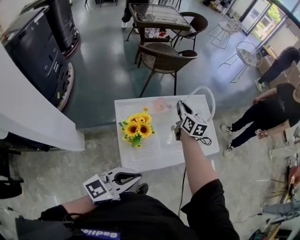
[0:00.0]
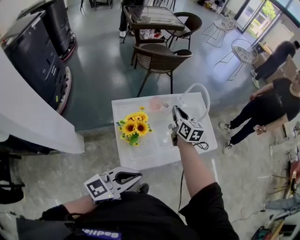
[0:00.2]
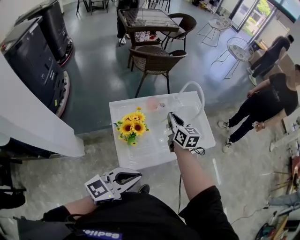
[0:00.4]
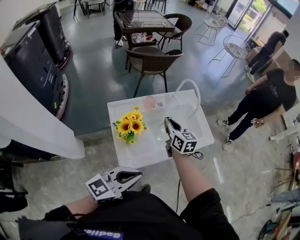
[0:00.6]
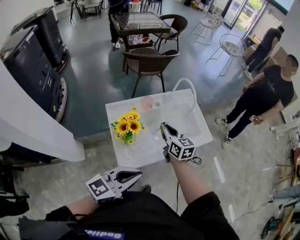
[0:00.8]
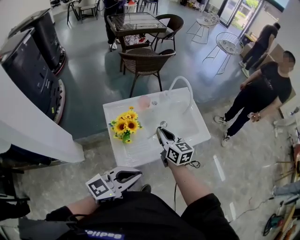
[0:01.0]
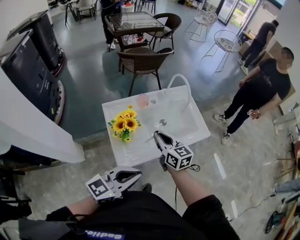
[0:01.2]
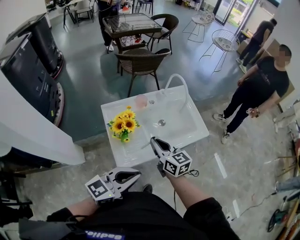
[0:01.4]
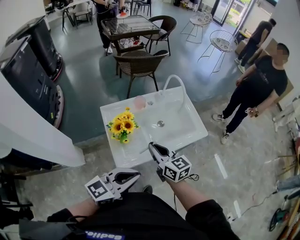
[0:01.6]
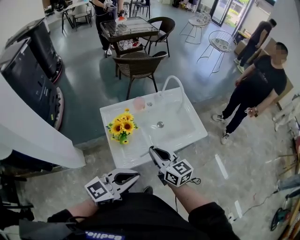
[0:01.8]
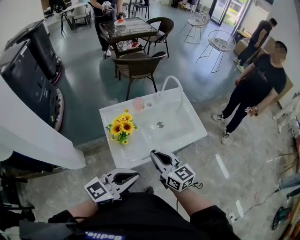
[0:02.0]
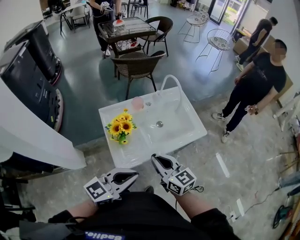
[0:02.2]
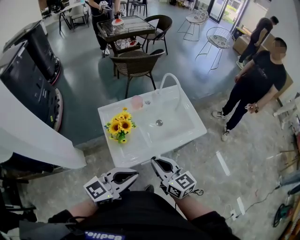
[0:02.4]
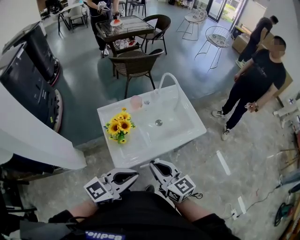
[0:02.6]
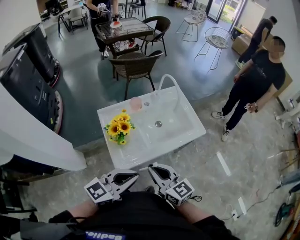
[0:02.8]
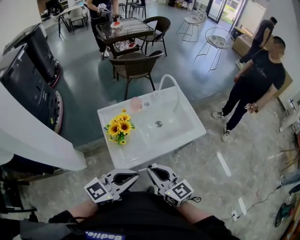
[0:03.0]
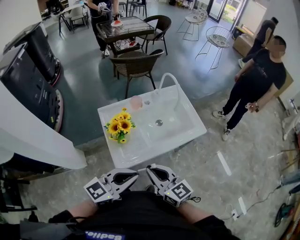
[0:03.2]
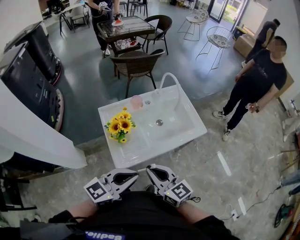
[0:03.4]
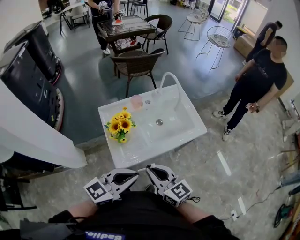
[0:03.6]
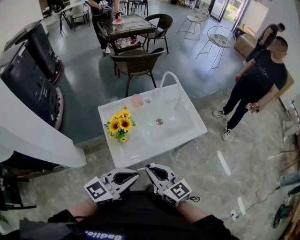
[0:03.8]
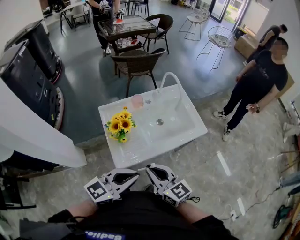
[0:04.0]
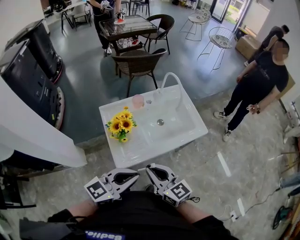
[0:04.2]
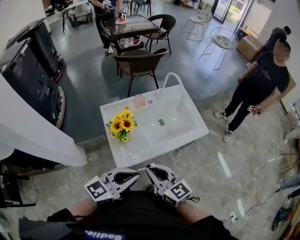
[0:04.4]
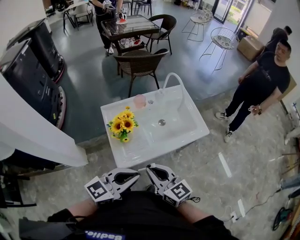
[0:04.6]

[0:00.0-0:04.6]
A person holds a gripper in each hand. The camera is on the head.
0:00.0 to 0:01.6: The right gripper heads backward, covering some 30 cm. Meanwhile the left gripper heads to the right, covering some 10 cm.
0:01.6 to 0:03.0: The right gripper is displaced backward by approximately 10 cm.
0:03.0 to 0:04.6: Neither gripper changes place.

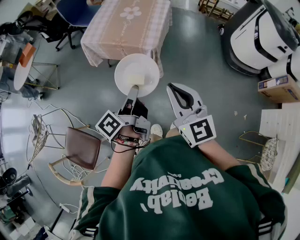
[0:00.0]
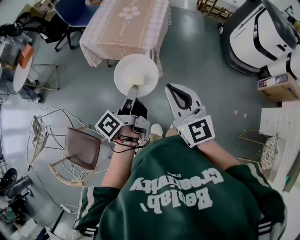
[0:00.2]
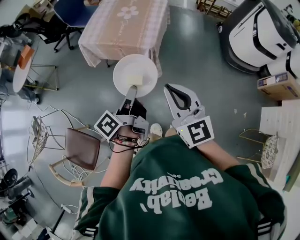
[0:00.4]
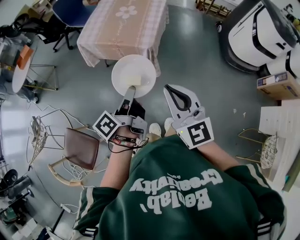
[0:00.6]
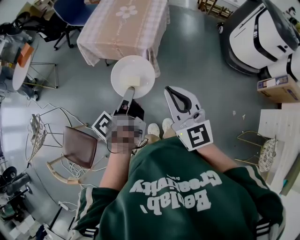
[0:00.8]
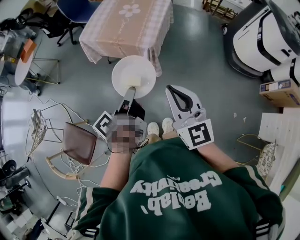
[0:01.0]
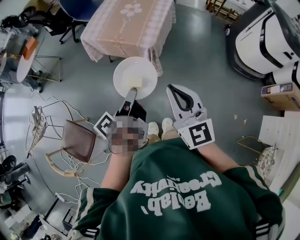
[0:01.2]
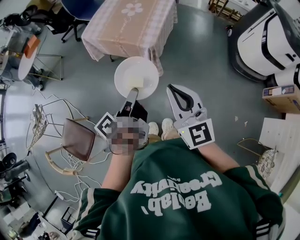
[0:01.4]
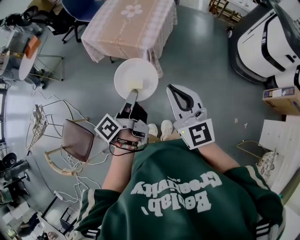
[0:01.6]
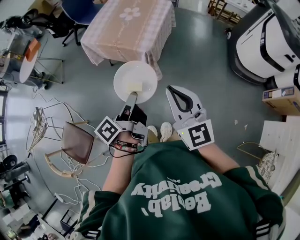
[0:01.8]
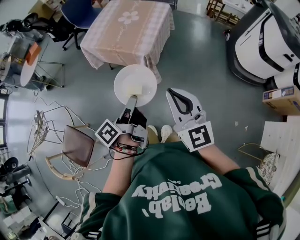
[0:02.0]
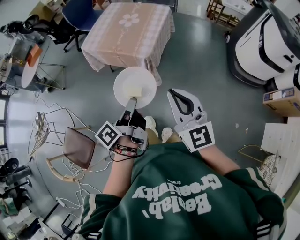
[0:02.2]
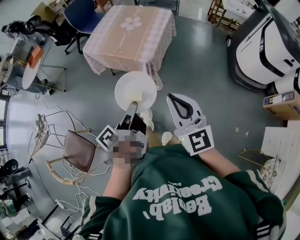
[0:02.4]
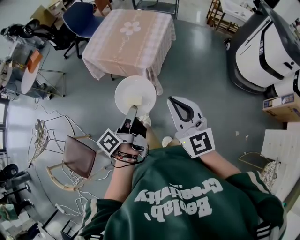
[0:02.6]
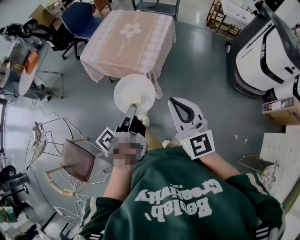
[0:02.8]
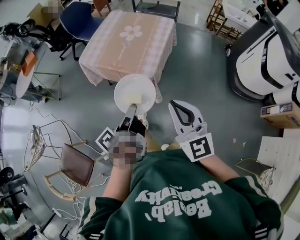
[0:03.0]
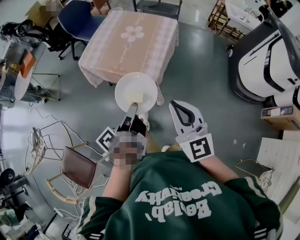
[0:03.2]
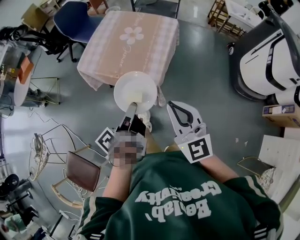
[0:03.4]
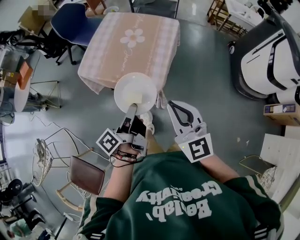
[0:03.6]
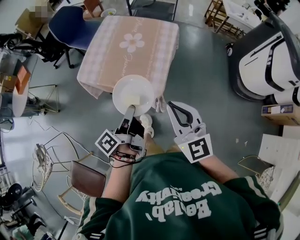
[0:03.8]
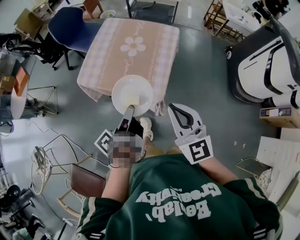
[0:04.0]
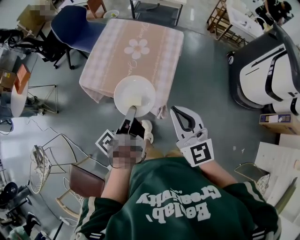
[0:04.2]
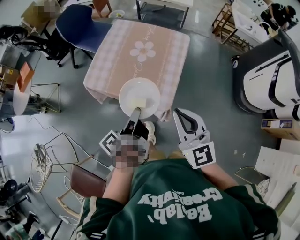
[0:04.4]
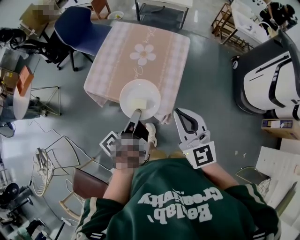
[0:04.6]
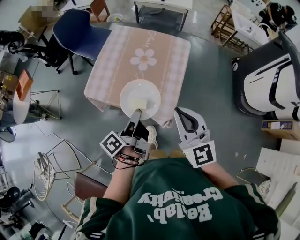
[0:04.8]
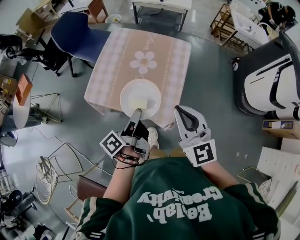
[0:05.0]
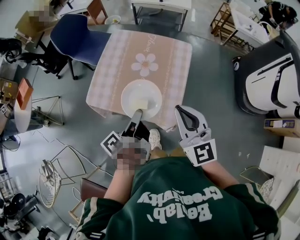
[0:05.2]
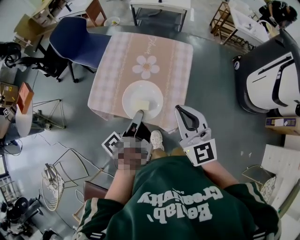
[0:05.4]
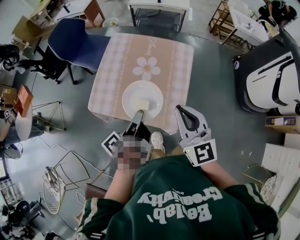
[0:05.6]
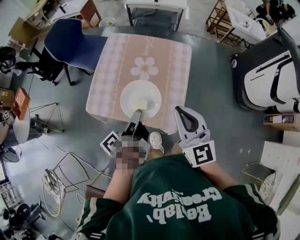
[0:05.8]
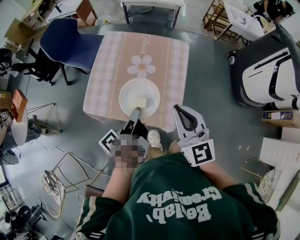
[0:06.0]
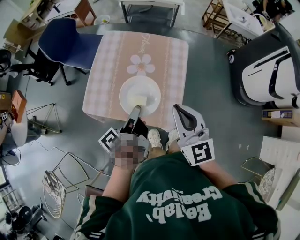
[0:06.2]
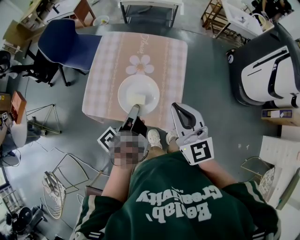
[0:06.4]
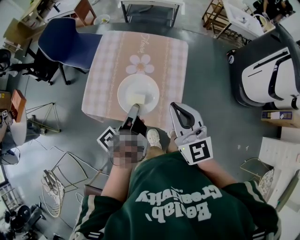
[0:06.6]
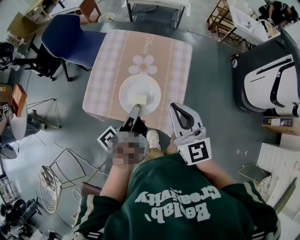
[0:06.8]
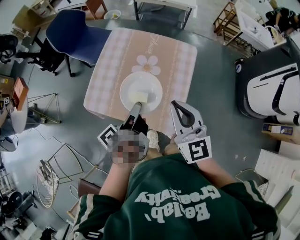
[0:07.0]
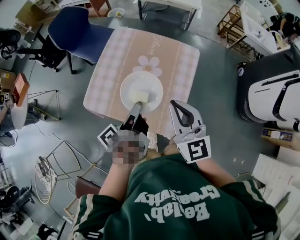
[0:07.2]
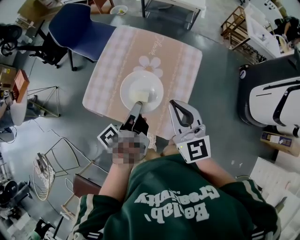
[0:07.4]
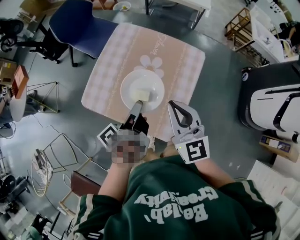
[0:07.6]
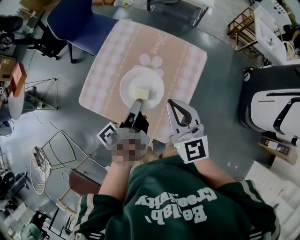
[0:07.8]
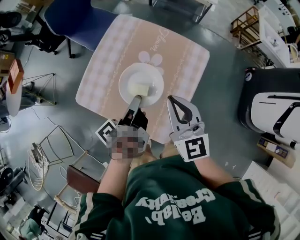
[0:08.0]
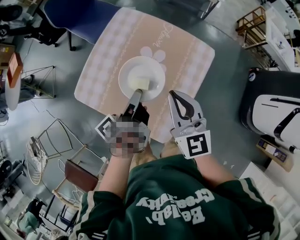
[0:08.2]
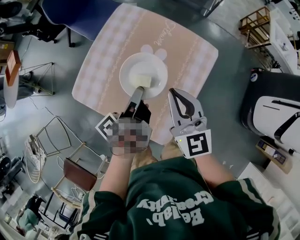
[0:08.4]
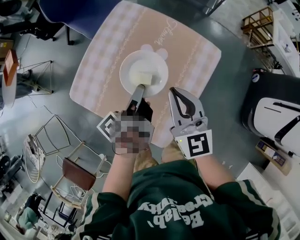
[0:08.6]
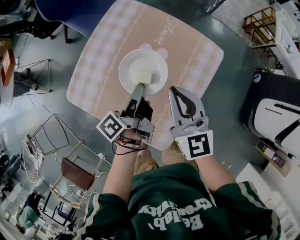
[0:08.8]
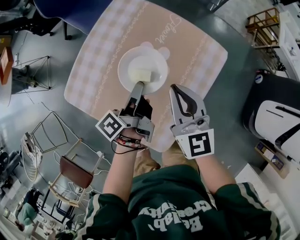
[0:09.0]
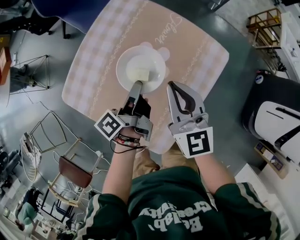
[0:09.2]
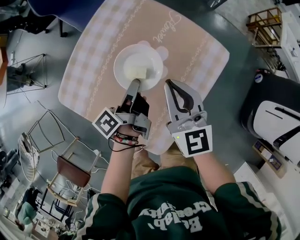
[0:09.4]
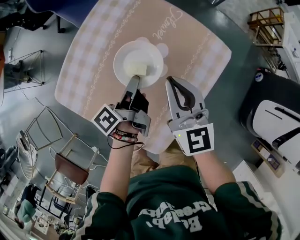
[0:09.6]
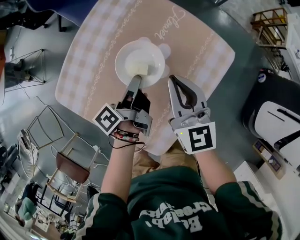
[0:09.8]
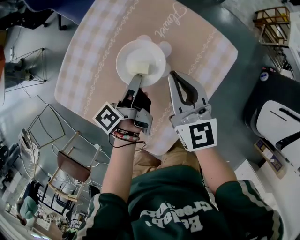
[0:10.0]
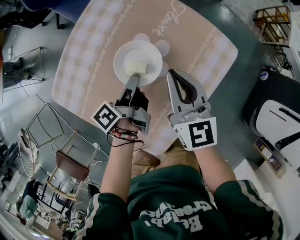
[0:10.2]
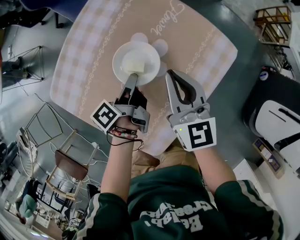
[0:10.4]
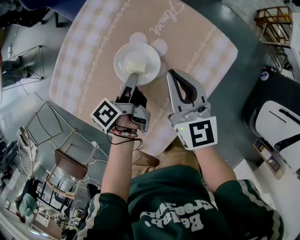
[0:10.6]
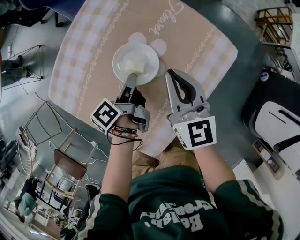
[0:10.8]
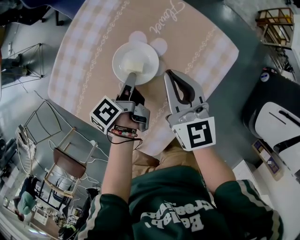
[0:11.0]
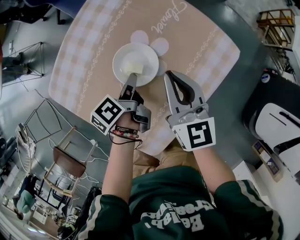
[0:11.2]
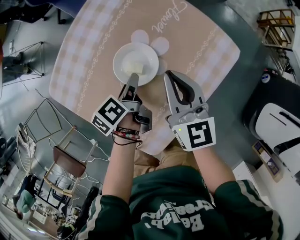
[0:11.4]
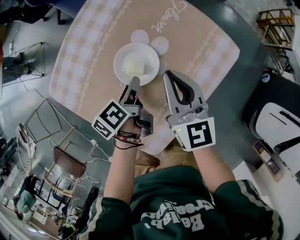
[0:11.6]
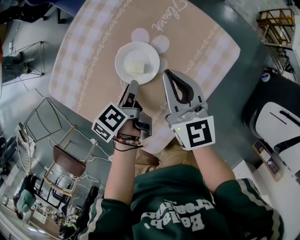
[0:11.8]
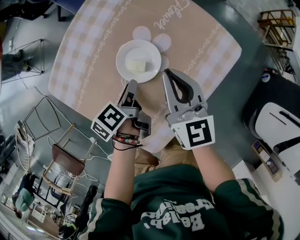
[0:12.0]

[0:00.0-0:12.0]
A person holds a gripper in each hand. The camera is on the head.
0:00.0 to 0:01.6: The right gripper shifts by approximately 10 cm.
0:01.6 to 0:03.0: The right gripper ends up approximately 10 cm from where it was.
0:03.0 to 0:04.4: The right gripper moves about 20 cm.
0:04.4 to 0:06.0: The right gripper shifts by about 15 cm.
0:06.0 to 0:07.6: The right gripper shifts by approximately 10 cm.
0:07.6 to 0:09.0: The right gripper moves approximately 15 cm.
0:09.0 to 0:10.4: The right gripper shifts approximately 5 cm downward.

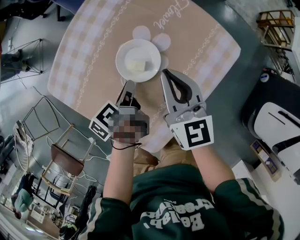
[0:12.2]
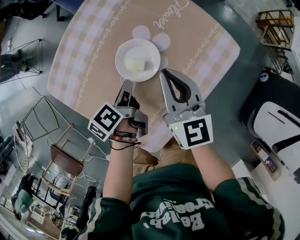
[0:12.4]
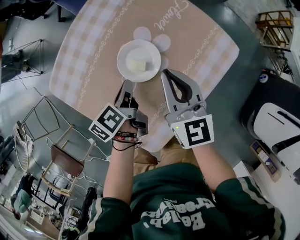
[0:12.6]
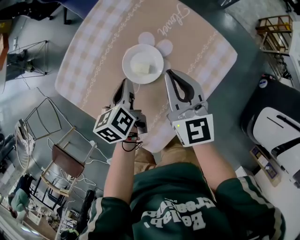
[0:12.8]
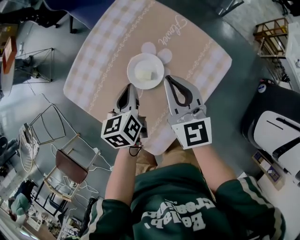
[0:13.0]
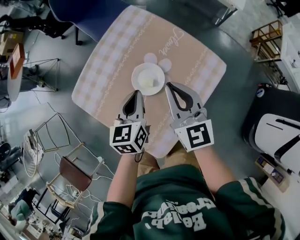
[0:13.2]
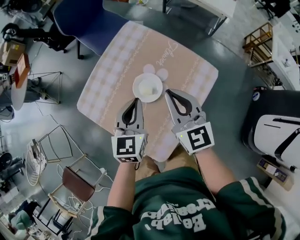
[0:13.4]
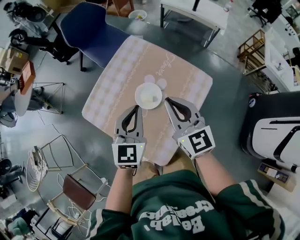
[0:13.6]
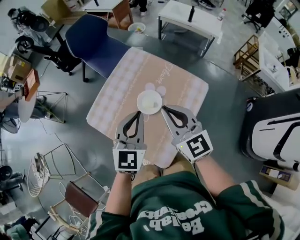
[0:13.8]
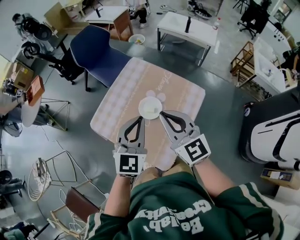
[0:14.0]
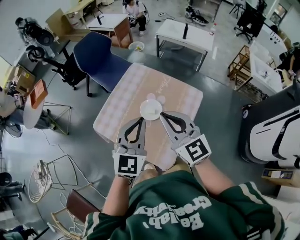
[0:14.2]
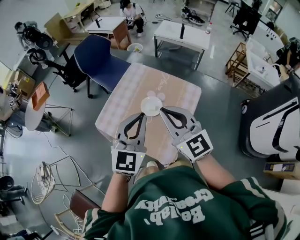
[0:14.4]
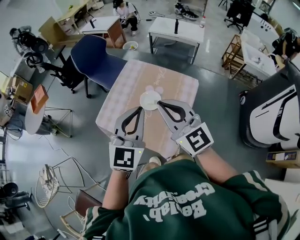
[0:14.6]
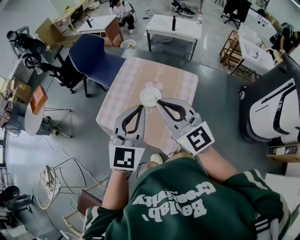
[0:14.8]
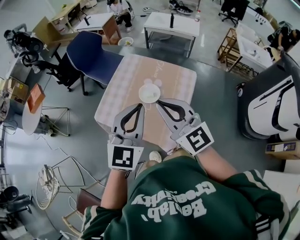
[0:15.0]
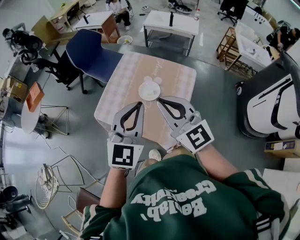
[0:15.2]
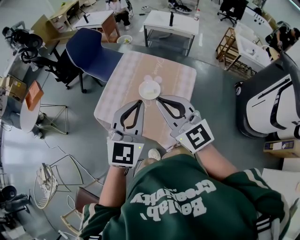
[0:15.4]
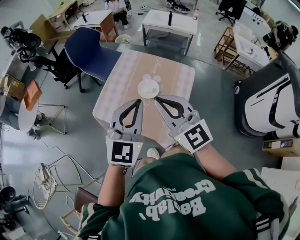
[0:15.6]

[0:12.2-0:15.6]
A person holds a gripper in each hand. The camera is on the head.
0:12.2 to 0:13.8: The right gripper goes about 20 cm upward.
0:13.8 to 0:15.6: The right gripper moves about 20 cm.

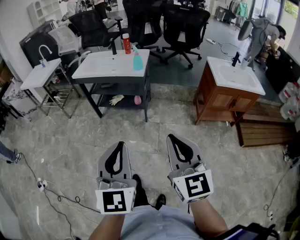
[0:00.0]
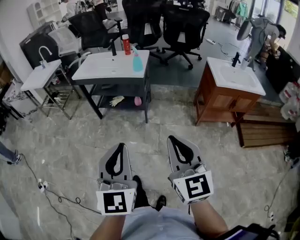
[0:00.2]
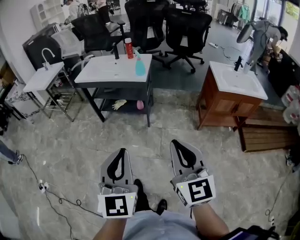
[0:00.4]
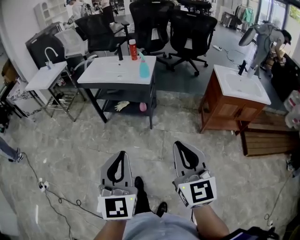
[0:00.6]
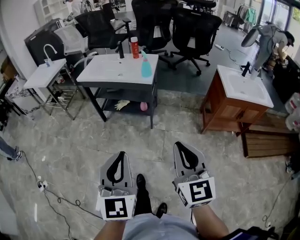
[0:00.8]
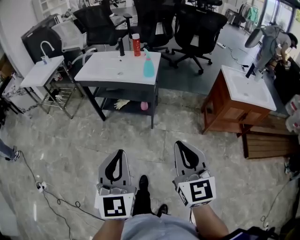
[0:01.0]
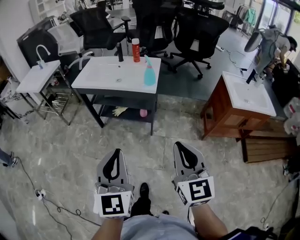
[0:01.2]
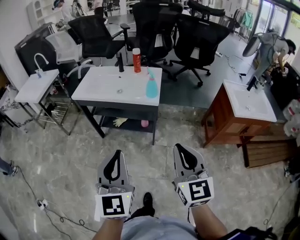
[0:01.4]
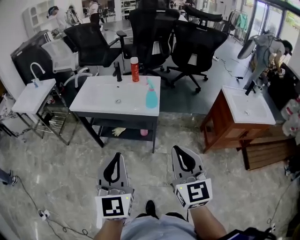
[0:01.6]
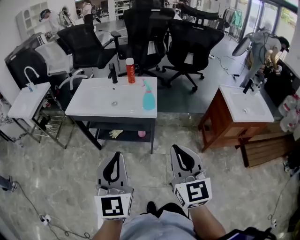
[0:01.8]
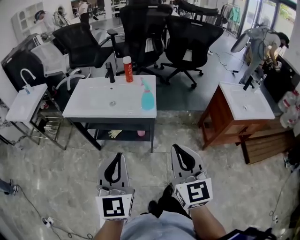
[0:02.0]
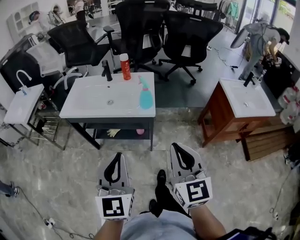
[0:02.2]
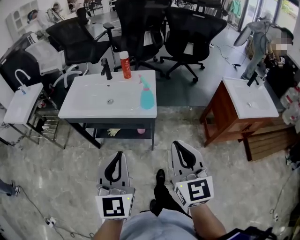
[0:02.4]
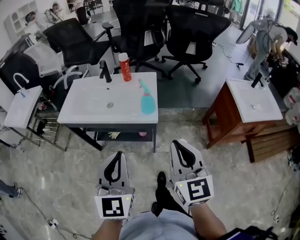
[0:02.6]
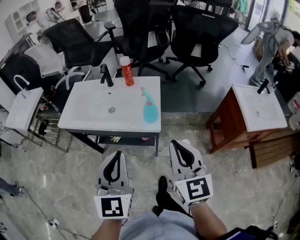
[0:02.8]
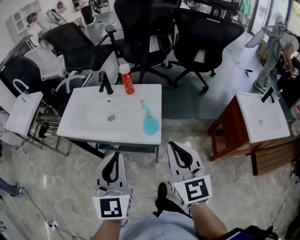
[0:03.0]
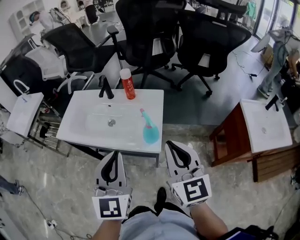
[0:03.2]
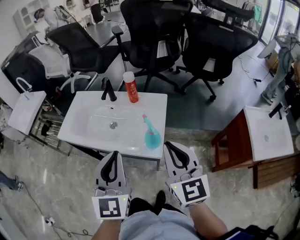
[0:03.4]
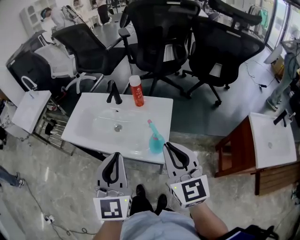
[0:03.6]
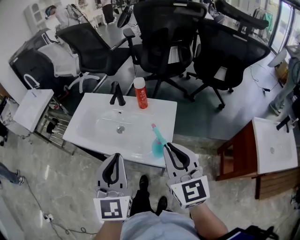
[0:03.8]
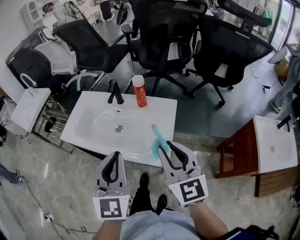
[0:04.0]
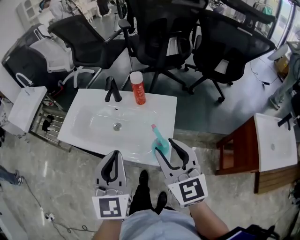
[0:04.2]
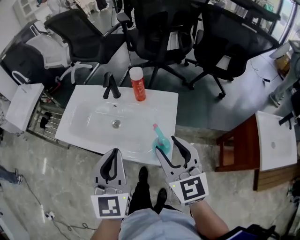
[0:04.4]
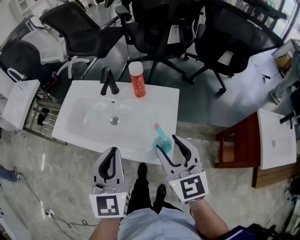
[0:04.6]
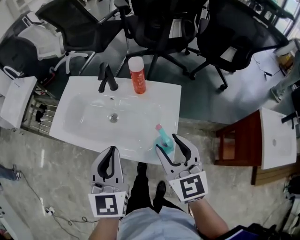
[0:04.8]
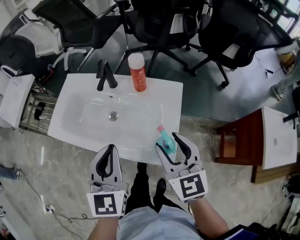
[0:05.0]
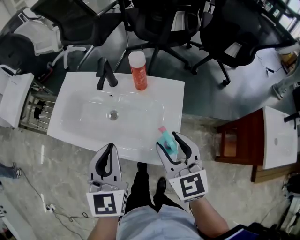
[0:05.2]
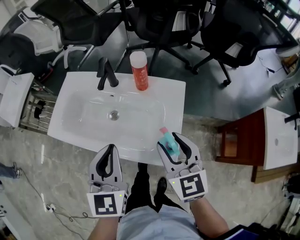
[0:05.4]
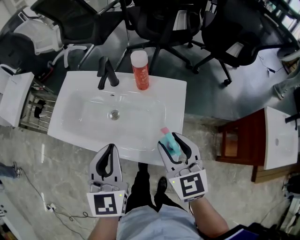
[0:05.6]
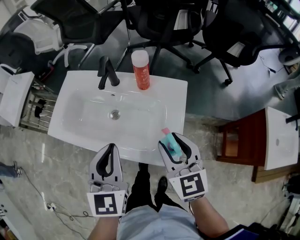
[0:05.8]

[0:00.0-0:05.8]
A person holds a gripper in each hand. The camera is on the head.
0:00.0 to 0:01.4: The grippers both shift forward by roughly 25 cm.
0:01.4 to 0:02.8: The grippers both shift forward by approximately 25 cm.
0:02.8 to 0:04.4: Both grippers travel together forward, approximately 25 cm. The right gripper opens up.
0:04.4 to 0:05.8: Both grippers move downward and forward, about 10 cm.
